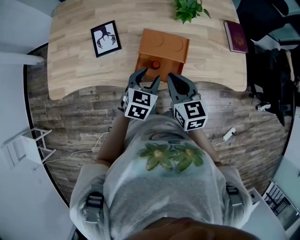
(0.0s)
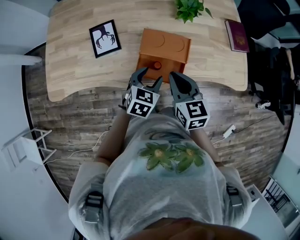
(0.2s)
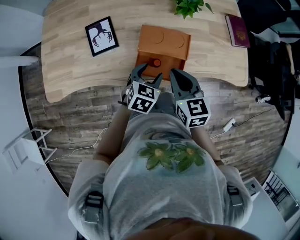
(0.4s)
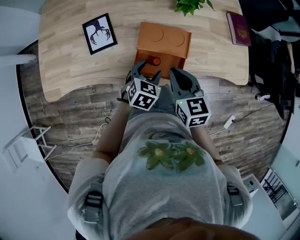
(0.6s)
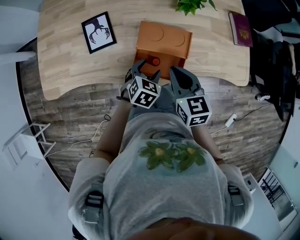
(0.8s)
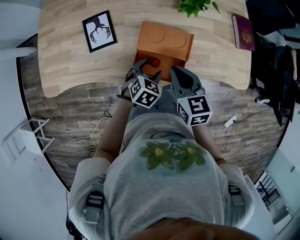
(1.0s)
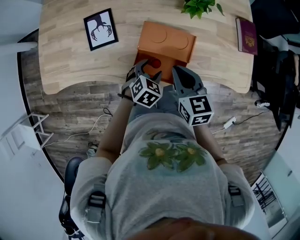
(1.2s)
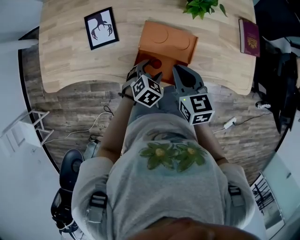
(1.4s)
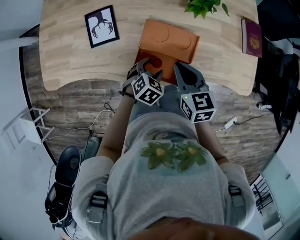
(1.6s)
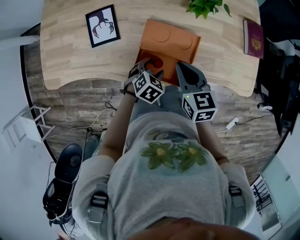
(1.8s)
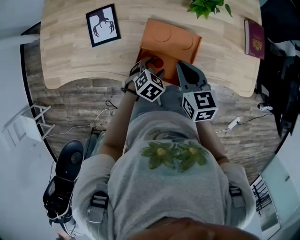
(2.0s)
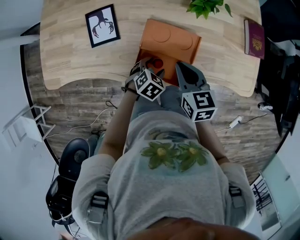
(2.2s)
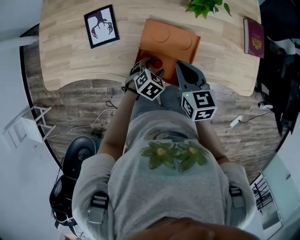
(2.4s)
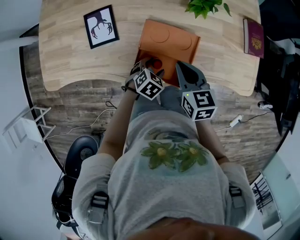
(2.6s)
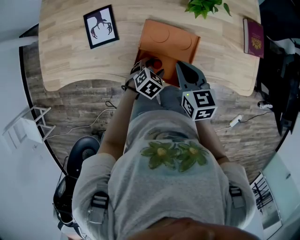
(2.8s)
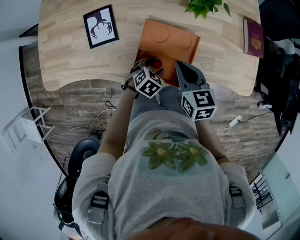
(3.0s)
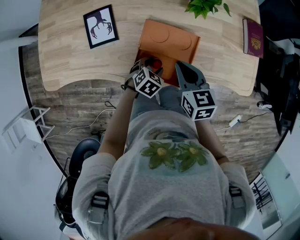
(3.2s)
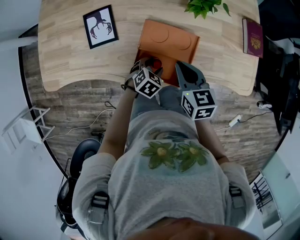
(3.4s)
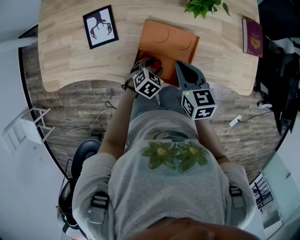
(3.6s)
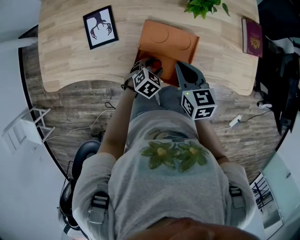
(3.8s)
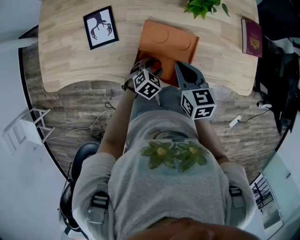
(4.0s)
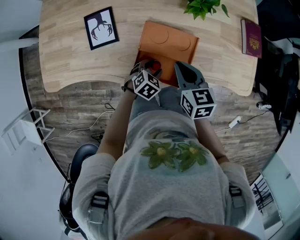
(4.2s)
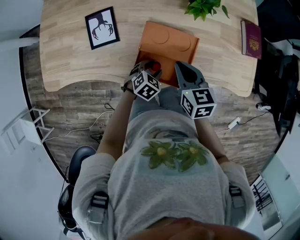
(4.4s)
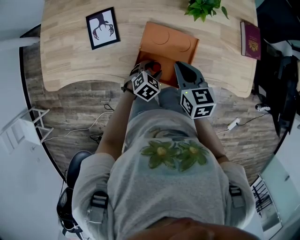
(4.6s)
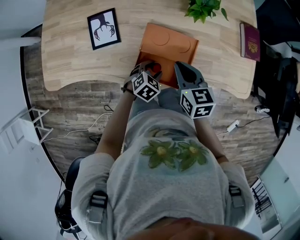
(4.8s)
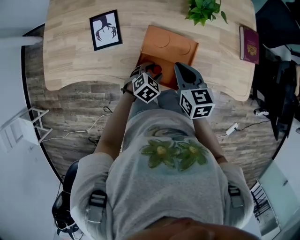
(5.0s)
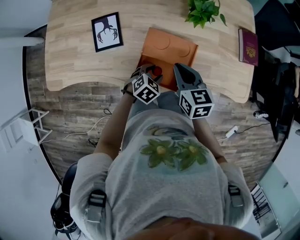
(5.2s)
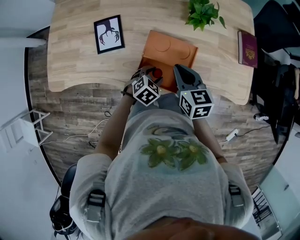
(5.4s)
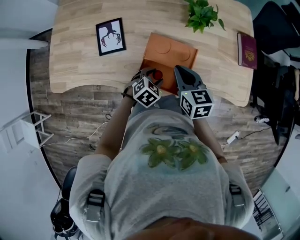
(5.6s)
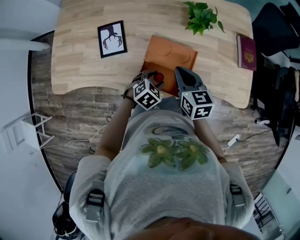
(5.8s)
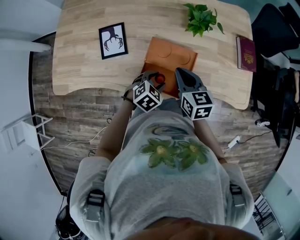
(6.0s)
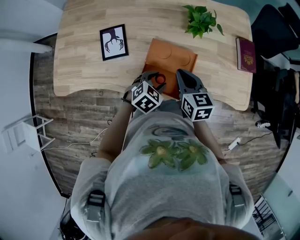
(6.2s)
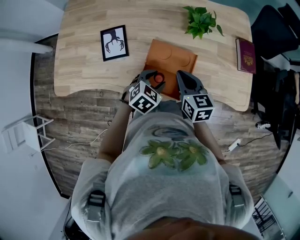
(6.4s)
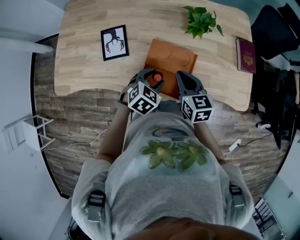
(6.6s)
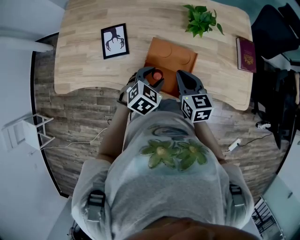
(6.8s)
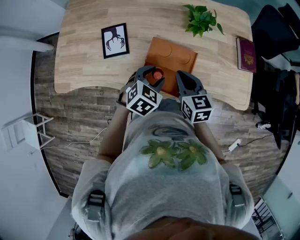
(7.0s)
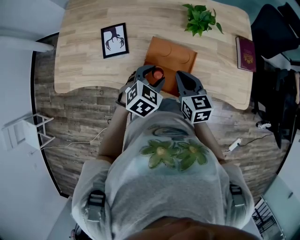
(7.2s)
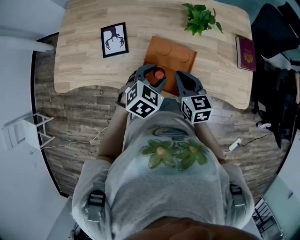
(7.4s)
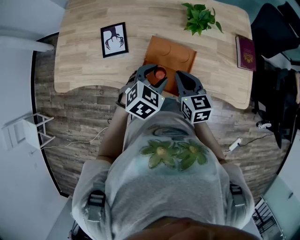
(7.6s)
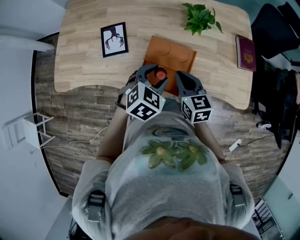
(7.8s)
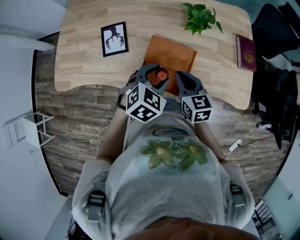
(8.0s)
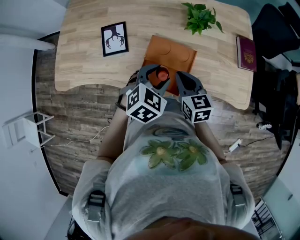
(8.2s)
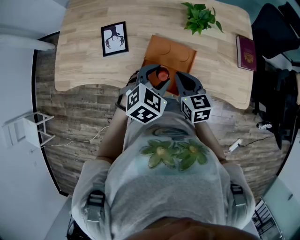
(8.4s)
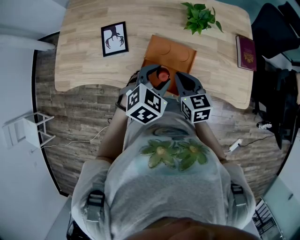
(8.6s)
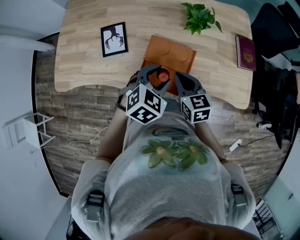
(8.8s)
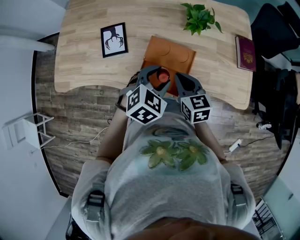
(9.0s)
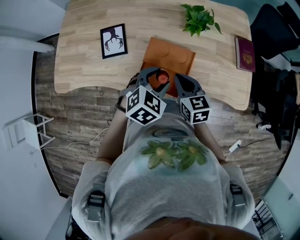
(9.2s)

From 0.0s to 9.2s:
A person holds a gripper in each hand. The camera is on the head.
From 0.0s to 1.6s: The right gripper shifts about 10 cm forward and downward, while the left gripper travels downward by about 10 cm, and changes its angle by some 20 degrees.
From 1.6s to 4.6s: There are only small adjustments of the grippers.
From 4.6s to 6.2s: The left gripper is displaced upward by about 10 cm.
From 6.2s to 7.6s: The left gripper goes about 10 cm upward.
From 7.6s to 9.2s: The grippers stay close to where they were, moving slightly.

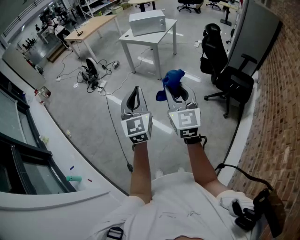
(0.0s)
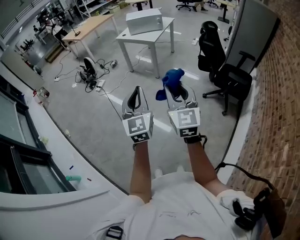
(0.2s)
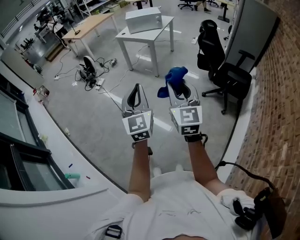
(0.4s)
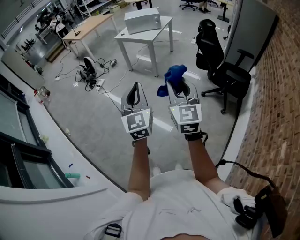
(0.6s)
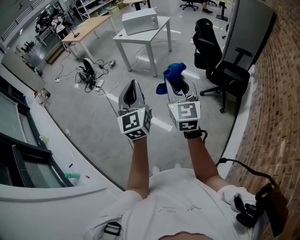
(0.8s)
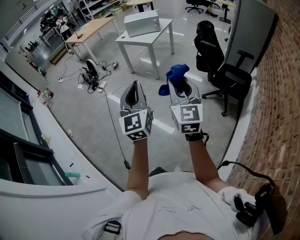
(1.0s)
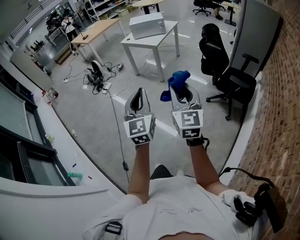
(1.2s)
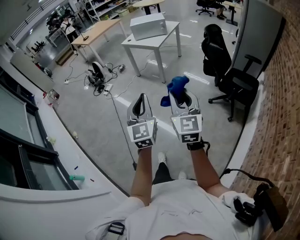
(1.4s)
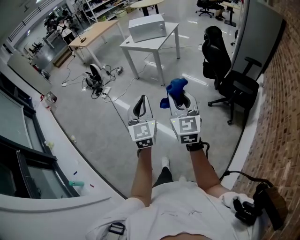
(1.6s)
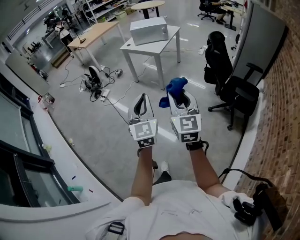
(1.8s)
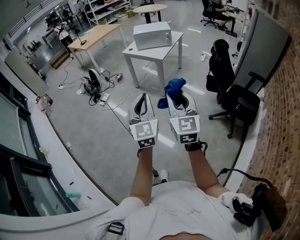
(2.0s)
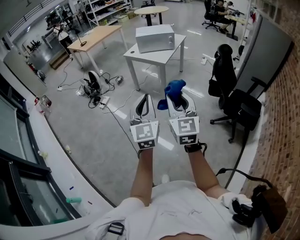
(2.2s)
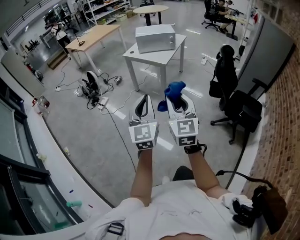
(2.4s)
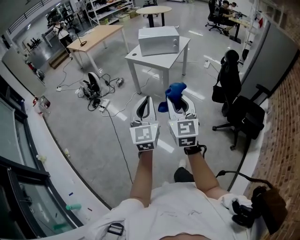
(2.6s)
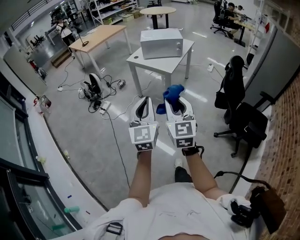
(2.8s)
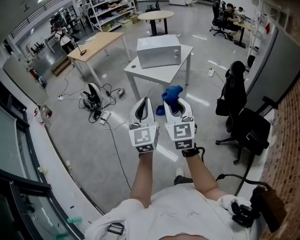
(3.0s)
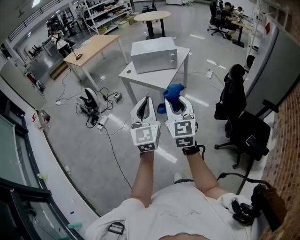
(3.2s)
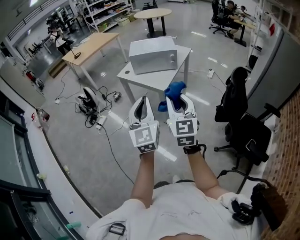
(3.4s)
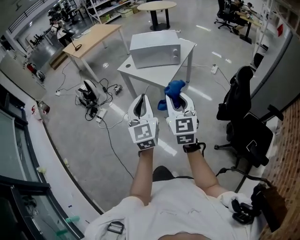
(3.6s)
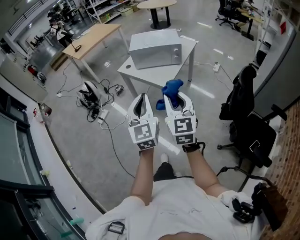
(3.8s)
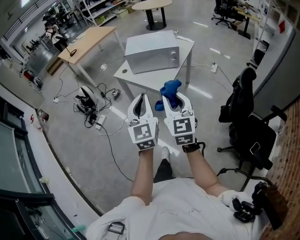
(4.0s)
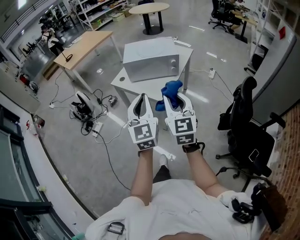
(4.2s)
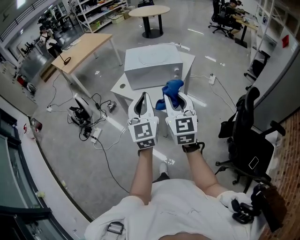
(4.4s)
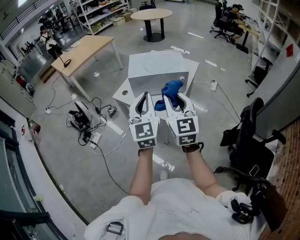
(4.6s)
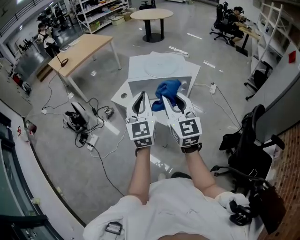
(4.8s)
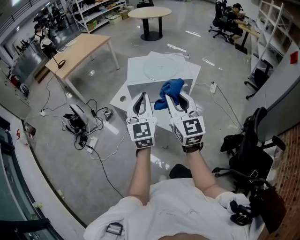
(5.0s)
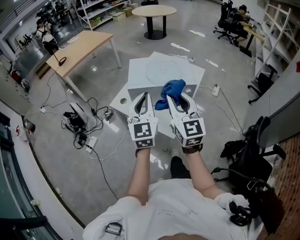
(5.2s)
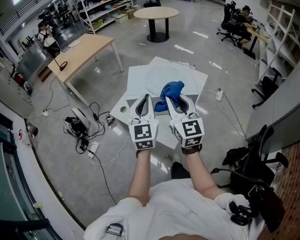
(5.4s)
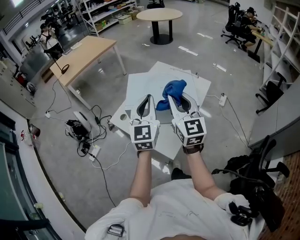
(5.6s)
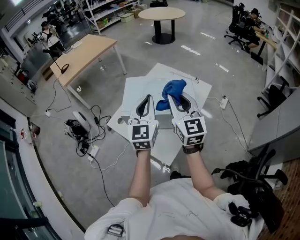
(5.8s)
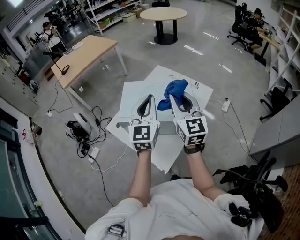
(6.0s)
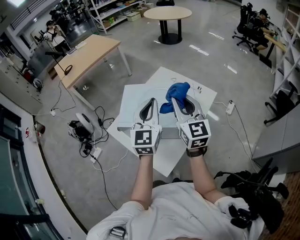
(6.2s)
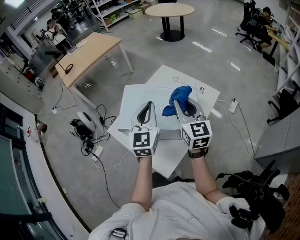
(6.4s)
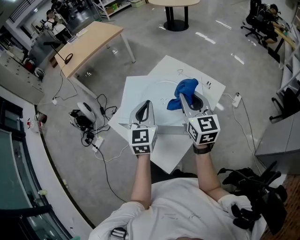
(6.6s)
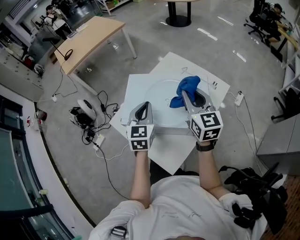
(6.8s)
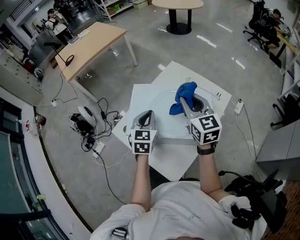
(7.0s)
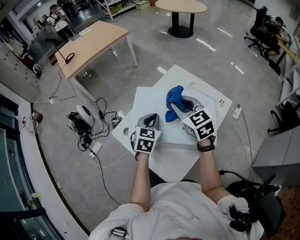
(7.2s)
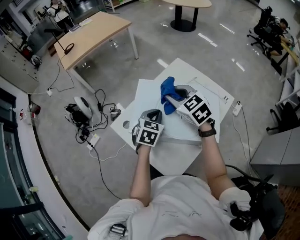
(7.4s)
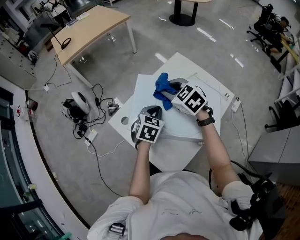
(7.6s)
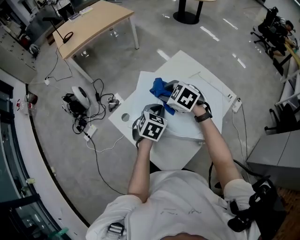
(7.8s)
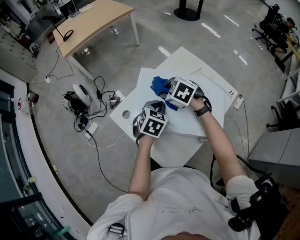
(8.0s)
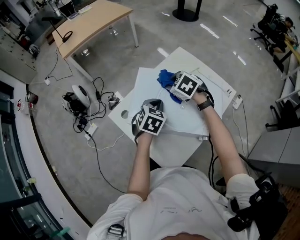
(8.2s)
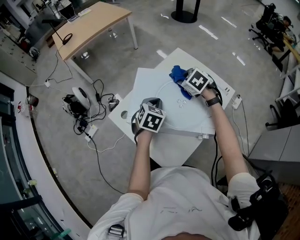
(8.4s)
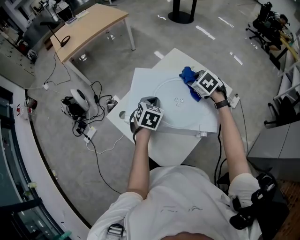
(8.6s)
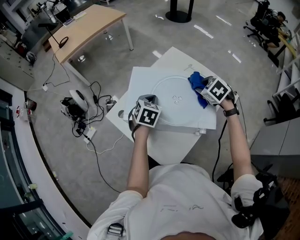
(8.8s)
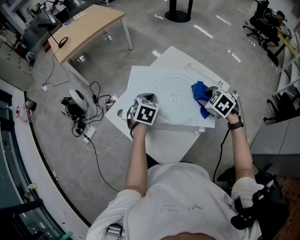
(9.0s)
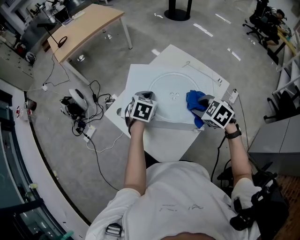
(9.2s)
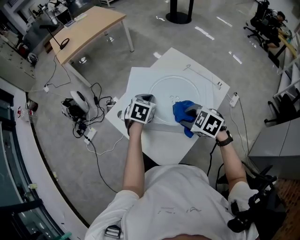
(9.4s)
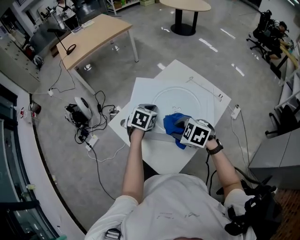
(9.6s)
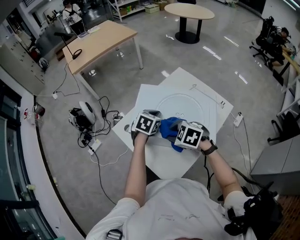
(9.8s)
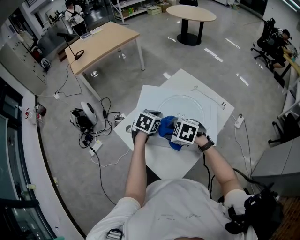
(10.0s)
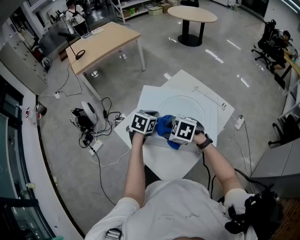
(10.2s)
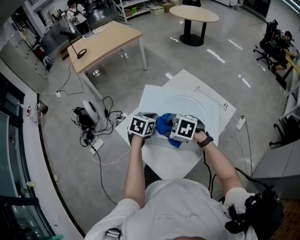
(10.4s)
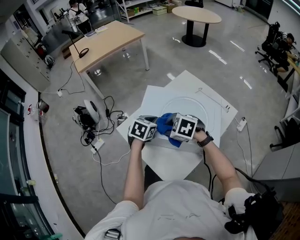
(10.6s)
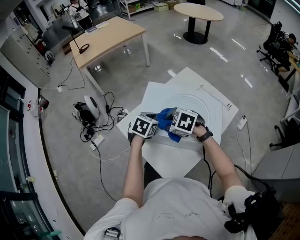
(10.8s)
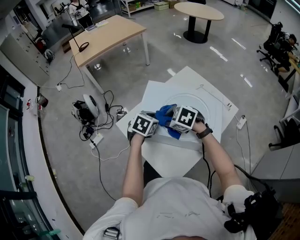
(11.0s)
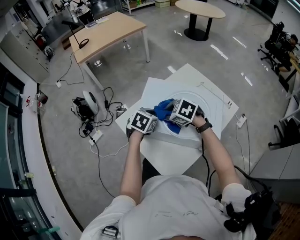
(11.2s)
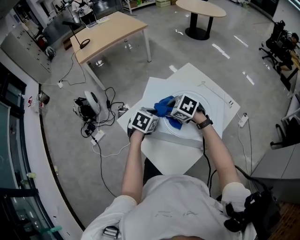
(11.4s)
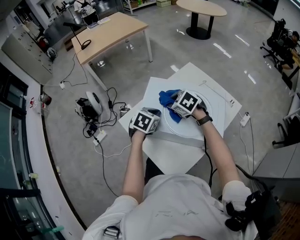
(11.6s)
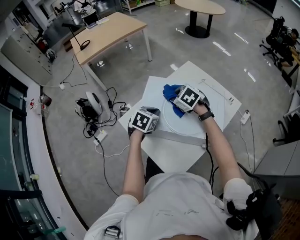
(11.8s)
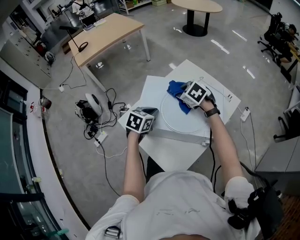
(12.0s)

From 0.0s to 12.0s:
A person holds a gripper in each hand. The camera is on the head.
From 0.0s to 1.6s: Both grippers move to the right, about 5 cm.
From 1.6s to 3.0s: Both grippers travel together forward, approximately 35 cm.
From 3.0s to 4.4s: Both grippers travel together forward, approximately 35 cm.
From 4.4s to 6.0s: The grippers both shift forward by some 40 cm.
From 6.0s to 7.6s: The right gripper travels forward, downward and to the left by some 25 cm, and angles its fingers downward, by some 40 degrees, while the left gripper heads downward and forward, covering about 25 cm, and tips its fingers downward by some 40 degrees.
From 7.6s to 9.0s: The right gripper heads to the right and backward, covering roughly 20 cm, and rotates about 20 degrees.
From 9.0s to 10.4s: The right gripper shifts approximately 20 cm to the left, and swivels roughly 30 degrees.
From 10.4s to 12.0s: The right gripper travels forward and to the right by about 15 cm, and changes its angle by approximately 20 degrees.

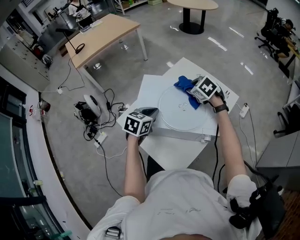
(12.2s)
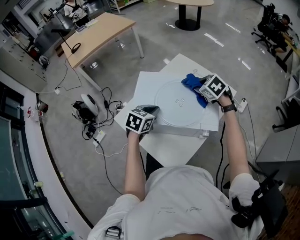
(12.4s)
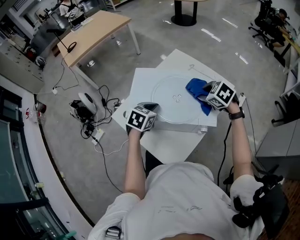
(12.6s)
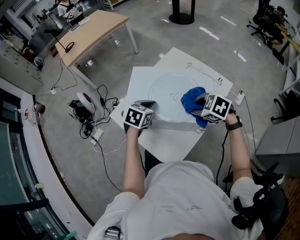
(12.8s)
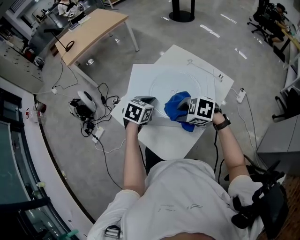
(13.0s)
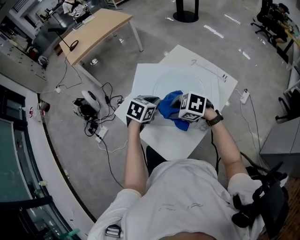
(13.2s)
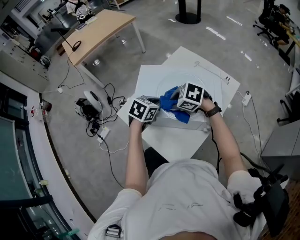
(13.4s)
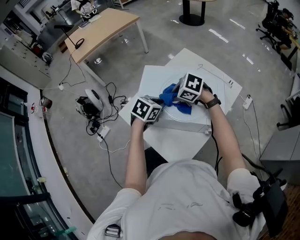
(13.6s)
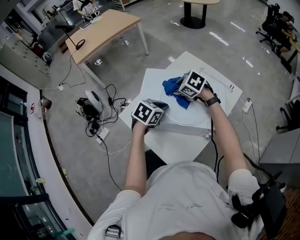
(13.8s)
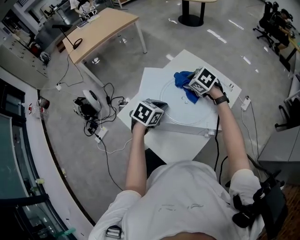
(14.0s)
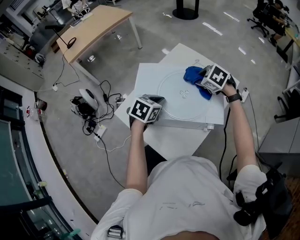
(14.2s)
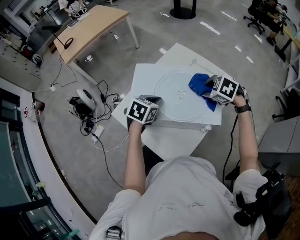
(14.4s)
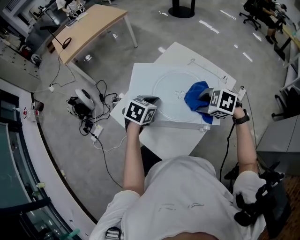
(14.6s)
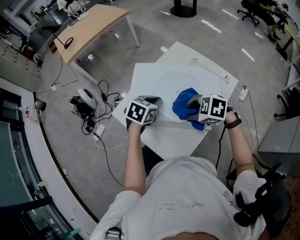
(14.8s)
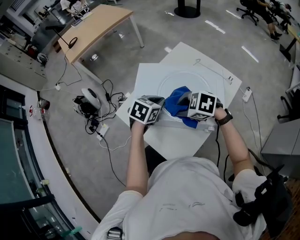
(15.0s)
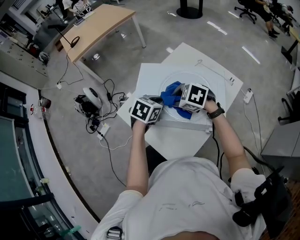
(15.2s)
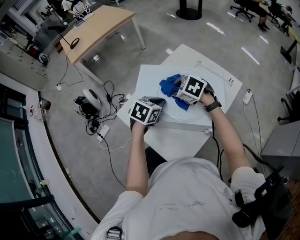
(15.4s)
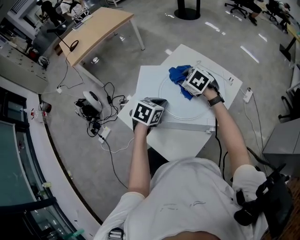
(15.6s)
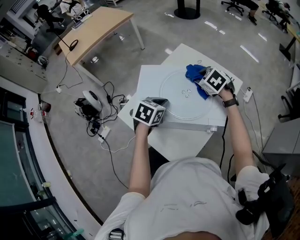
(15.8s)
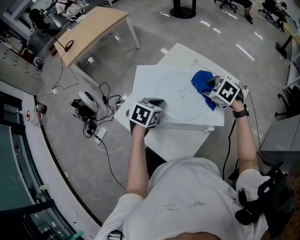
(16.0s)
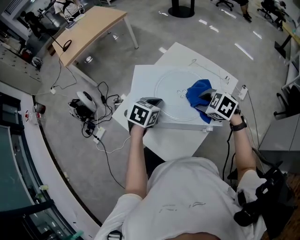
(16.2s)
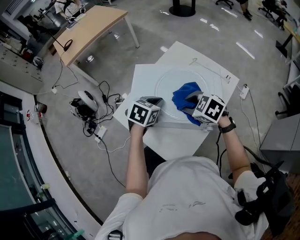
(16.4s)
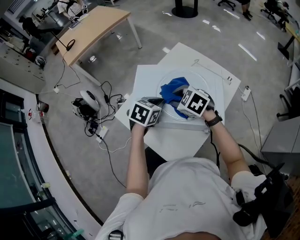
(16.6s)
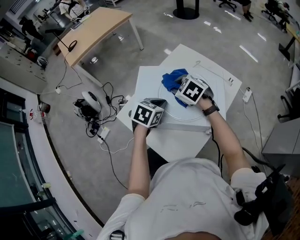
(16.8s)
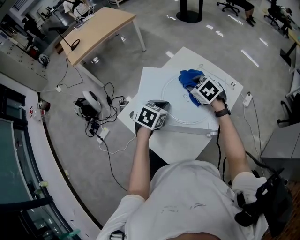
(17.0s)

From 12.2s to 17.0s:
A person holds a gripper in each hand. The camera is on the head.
From 15.4s to 17.0s: The right gripper goes left and right, roughly 15 cm each way, reversing 2 times, and swivels approximately 20 degrees.
